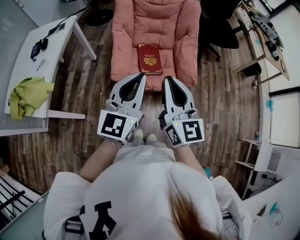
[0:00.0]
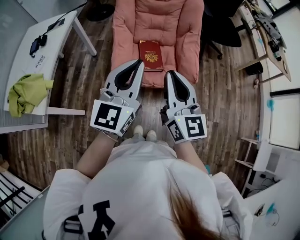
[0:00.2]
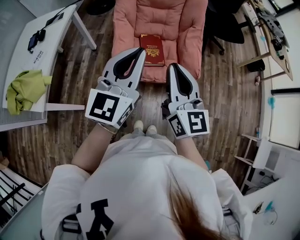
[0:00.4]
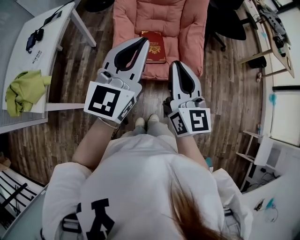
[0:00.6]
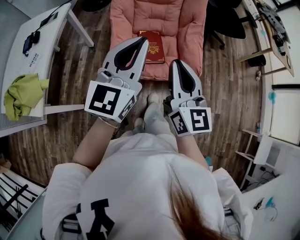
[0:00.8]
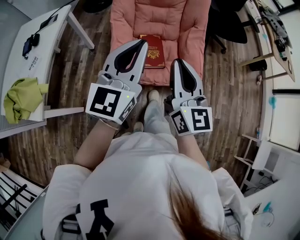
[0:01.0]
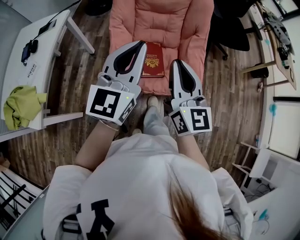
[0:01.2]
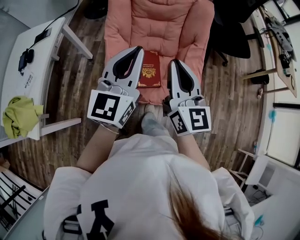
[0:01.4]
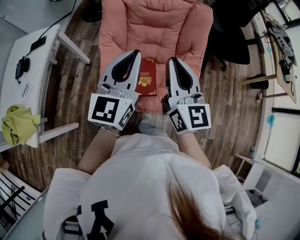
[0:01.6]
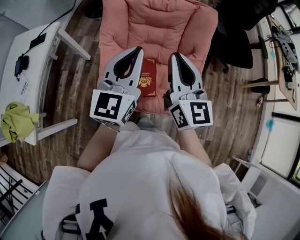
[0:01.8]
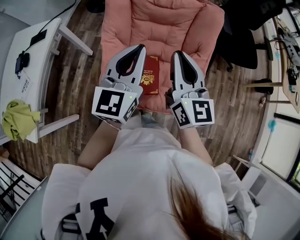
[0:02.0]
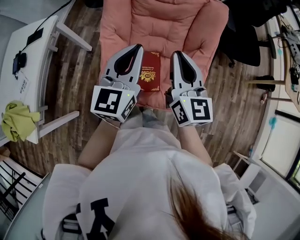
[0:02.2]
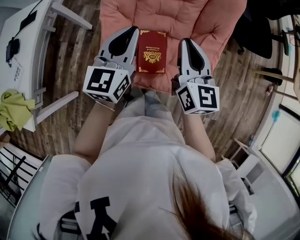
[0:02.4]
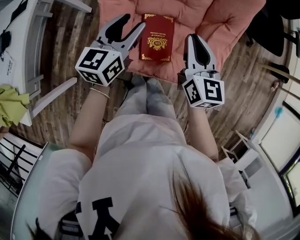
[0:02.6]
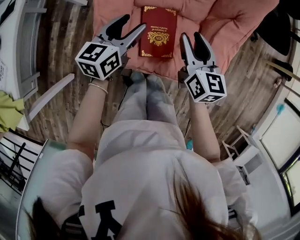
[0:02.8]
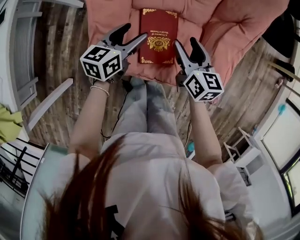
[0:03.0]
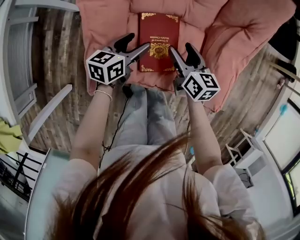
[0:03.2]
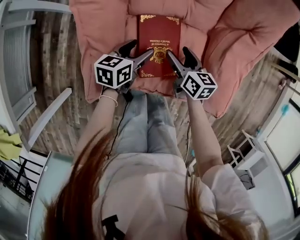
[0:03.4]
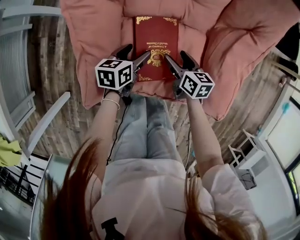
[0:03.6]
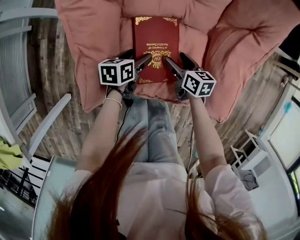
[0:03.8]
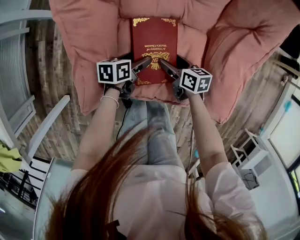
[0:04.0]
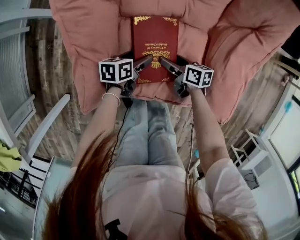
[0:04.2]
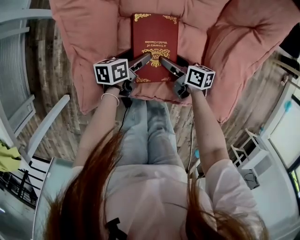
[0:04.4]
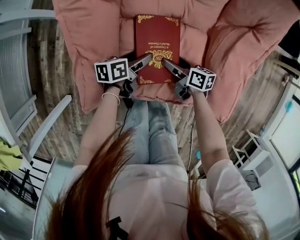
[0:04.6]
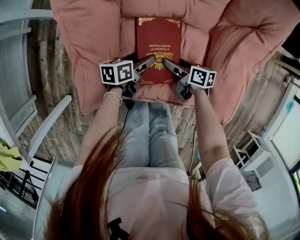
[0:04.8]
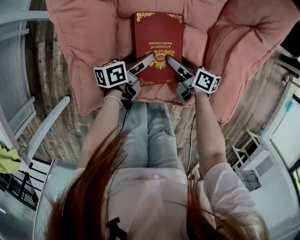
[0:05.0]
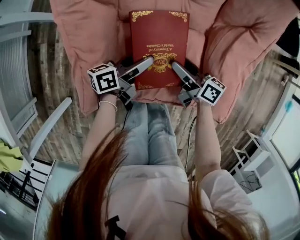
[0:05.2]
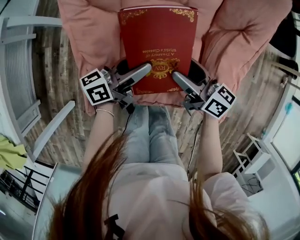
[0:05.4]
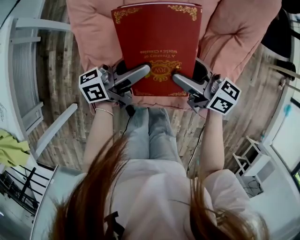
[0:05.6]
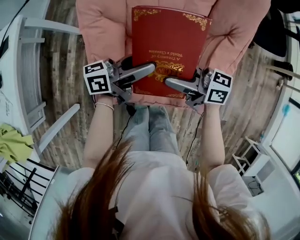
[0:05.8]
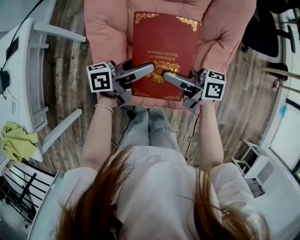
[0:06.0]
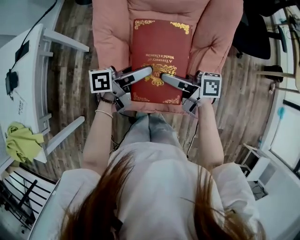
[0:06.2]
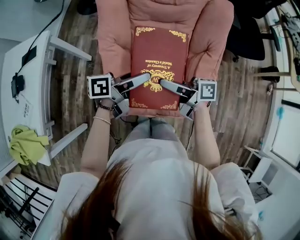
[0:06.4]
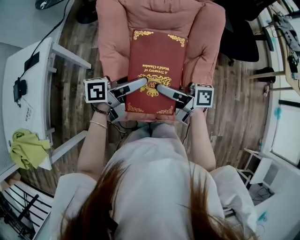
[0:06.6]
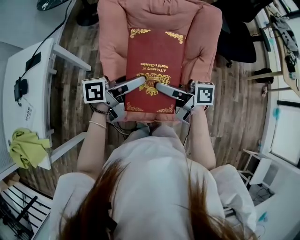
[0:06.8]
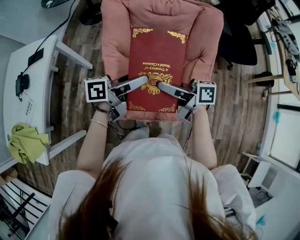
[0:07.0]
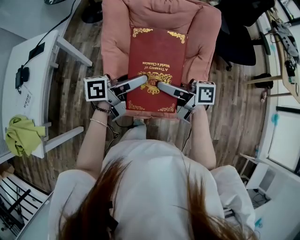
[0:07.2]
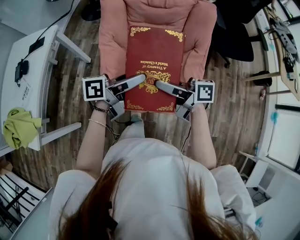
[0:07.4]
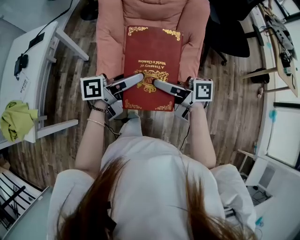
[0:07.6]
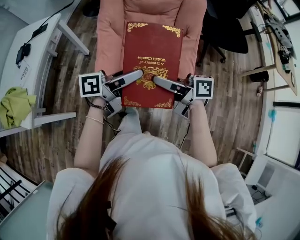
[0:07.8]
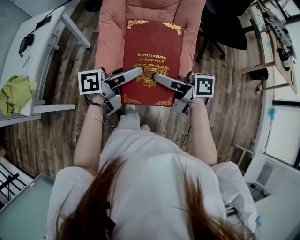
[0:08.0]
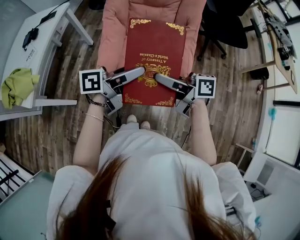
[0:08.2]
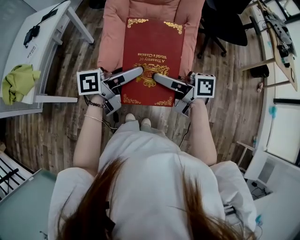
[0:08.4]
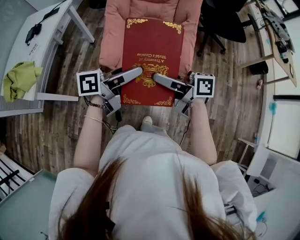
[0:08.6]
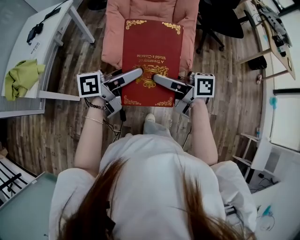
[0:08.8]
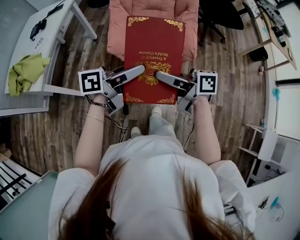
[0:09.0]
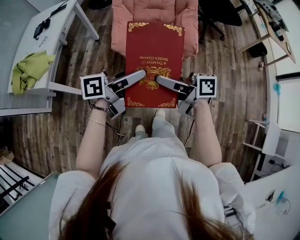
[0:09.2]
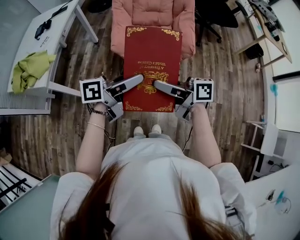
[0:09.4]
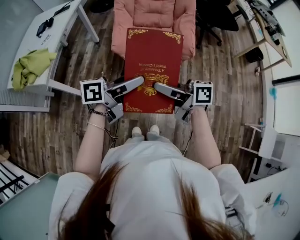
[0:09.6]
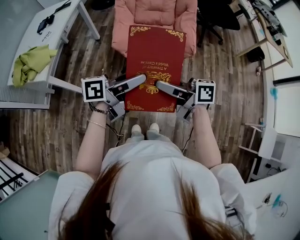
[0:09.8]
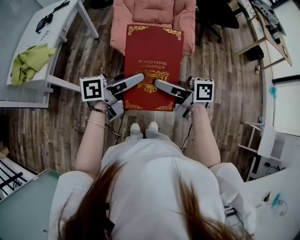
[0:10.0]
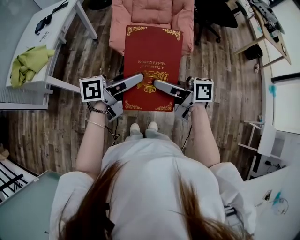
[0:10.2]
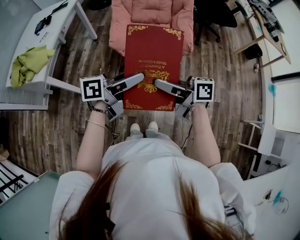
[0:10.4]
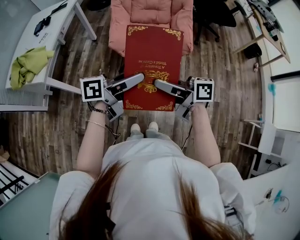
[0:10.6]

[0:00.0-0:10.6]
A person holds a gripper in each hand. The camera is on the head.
0:00.0 to 0:01.6: The two grippers go approximately 30 cm forward.
0:01.6 to 0:03.0: Both grippers move downward, roughly 40 cm. The right gripper tilts its fingers approximately 30 degrees downward, and opens up. The left gripper rotates about 40 degrees, and opens.
0:03.0 to 0:04.6: The two grippers go some 20 cm downward. The right gripper swivels some 40 degrees, while the left gripper changes its angle by about 30 degrees.
0:04.6 to 0:06.0: Both grippers travel together upward, some 30 cm. The right gripper turns by roughly 30 degrees. Meanwhile the left gripper tips its fingers upward by some 30 degrees.
0:06.0 to 0:07.6: The right gripper moves upward, roughly 15 cm, while the left gripper changes place by about 20 cm.
0:07.6 to 0:09.0: The left gripper shifts by about 30 cm, while the right gripper changes place by some 30 cm.
0:09.0 to 0:10.6: The right gripper ends up some 10 cm from where it was. Meanwhile the left gripper shifts by approximately 10 cm.

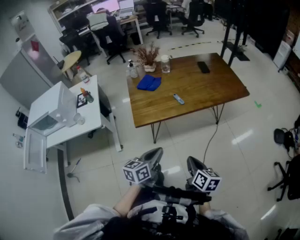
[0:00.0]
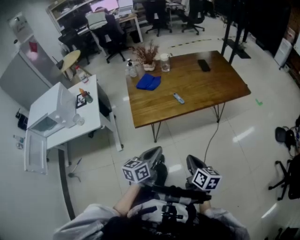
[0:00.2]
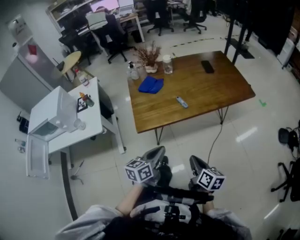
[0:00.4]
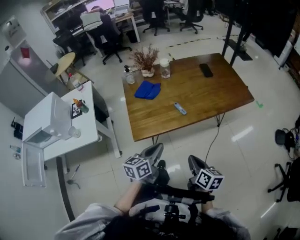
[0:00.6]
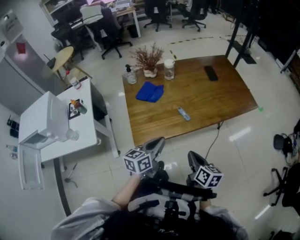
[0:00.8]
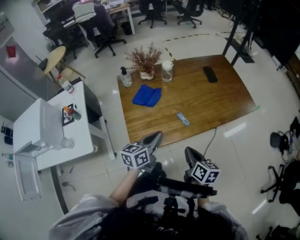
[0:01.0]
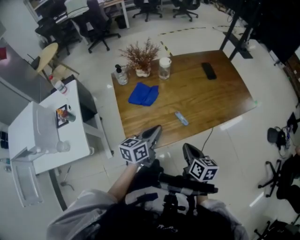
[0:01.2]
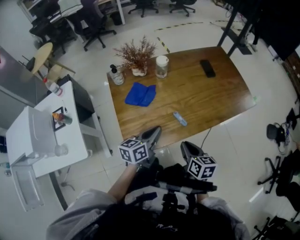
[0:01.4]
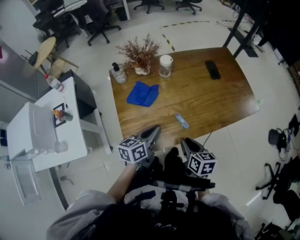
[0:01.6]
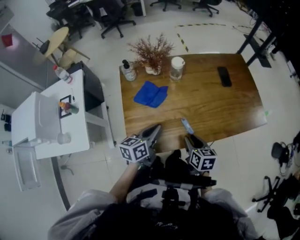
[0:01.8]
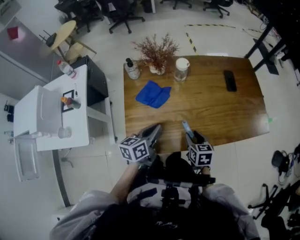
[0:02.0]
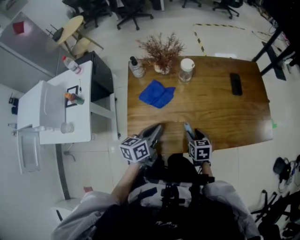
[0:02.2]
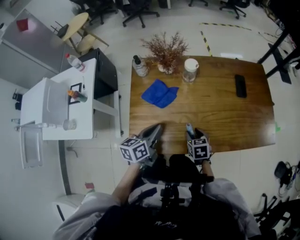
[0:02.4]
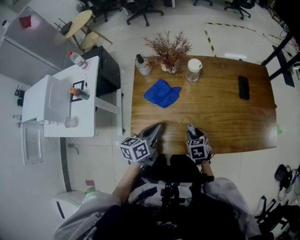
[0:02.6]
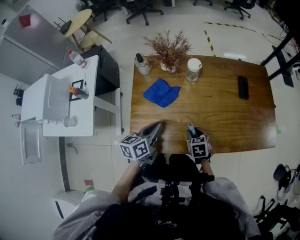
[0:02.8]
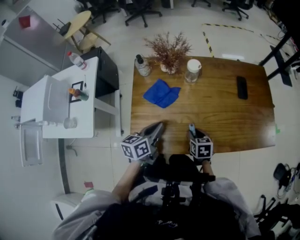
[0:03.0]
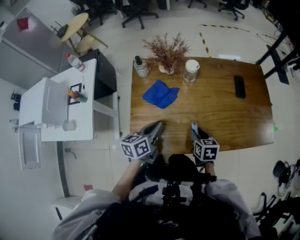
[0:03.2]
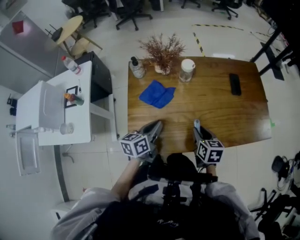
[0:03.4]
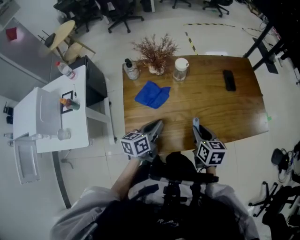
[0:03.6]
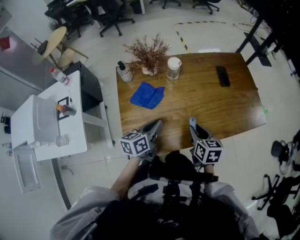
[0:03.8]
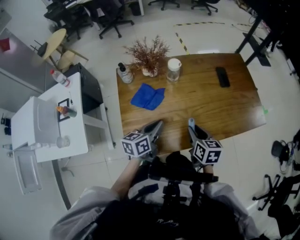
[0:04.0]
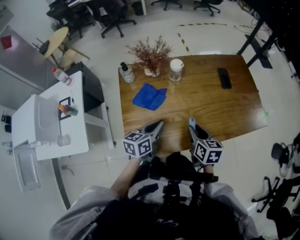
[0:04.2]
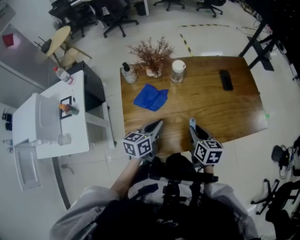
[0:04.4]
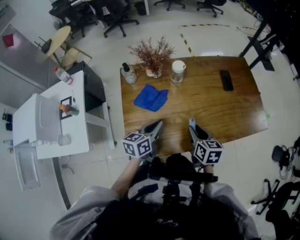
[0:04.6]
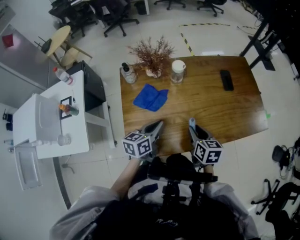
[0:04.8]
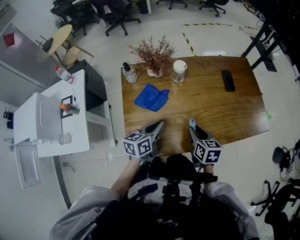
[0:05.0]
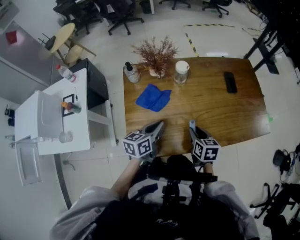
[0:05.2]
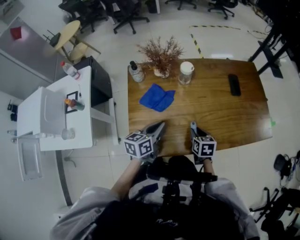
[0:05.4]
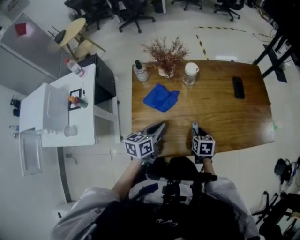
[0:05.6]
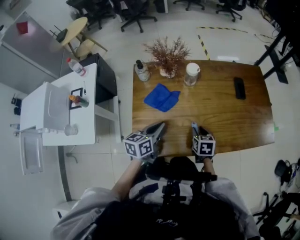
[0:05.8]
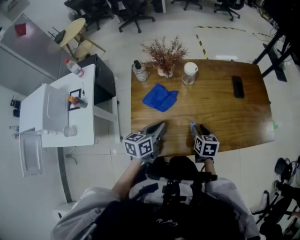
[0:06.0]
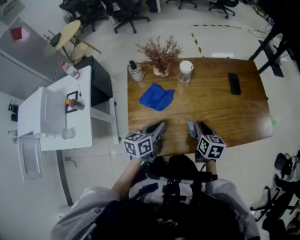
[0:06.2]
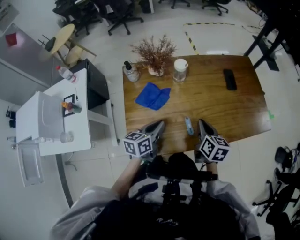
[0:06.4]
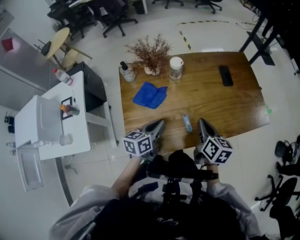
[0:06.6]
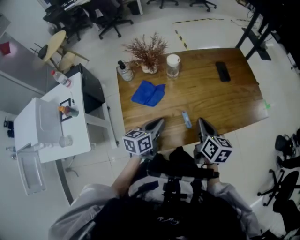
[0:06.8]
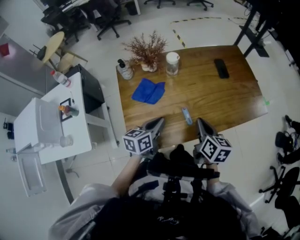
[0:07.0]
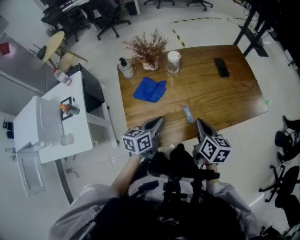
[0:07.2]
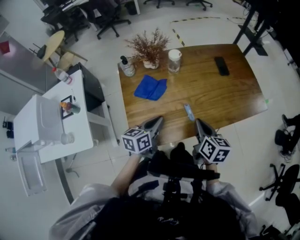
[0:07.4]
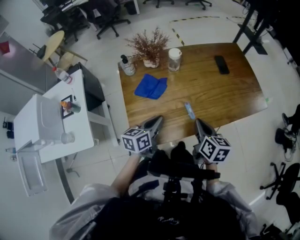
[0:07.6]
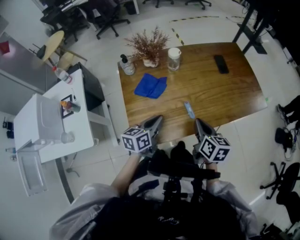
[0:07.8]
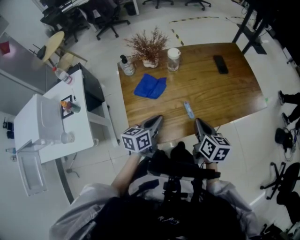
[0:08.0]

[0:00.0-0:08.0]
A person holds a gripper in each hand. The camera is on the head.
0:00.0 to 0:01.6: Both grippers move forward, about 35 cm.
0:01.6 to 0:03.2: The right gripper moves forward and downward, roughly 15 cm, and turns by roughly 20 degrees, while the left gripper moves approximately 5 cm.
0:03.2 to 0:04.8: The right gripper is displaced upward by about 5 cm.
0:04.8 to 0:06.4: The right gripper travels downward and back again, about 10 cm each way, and closes up.
0:06.4 to 0:08.0: The right gripper moves backward, about 10 cm. The left gripper goes about 5 cm backward.

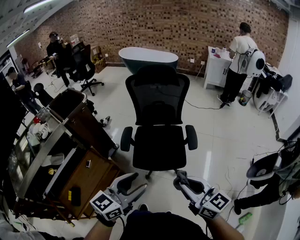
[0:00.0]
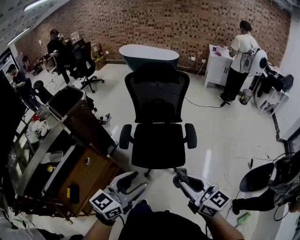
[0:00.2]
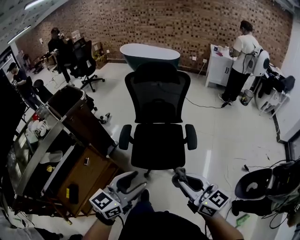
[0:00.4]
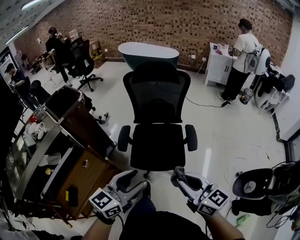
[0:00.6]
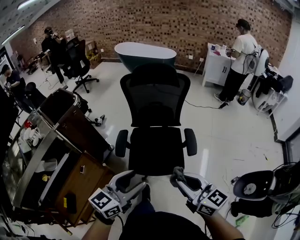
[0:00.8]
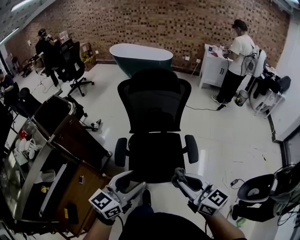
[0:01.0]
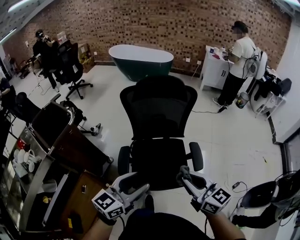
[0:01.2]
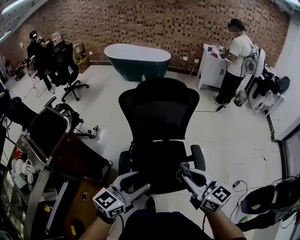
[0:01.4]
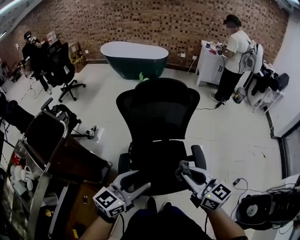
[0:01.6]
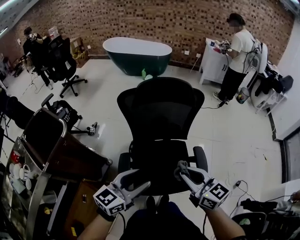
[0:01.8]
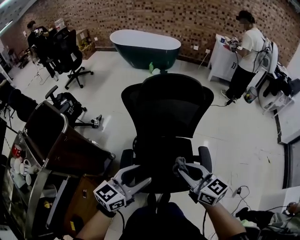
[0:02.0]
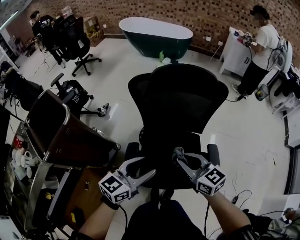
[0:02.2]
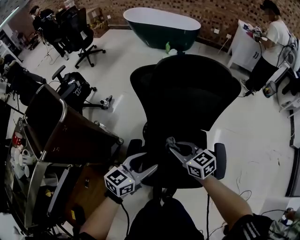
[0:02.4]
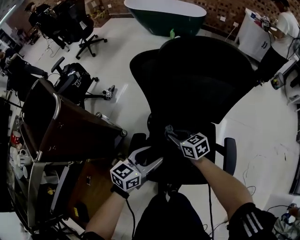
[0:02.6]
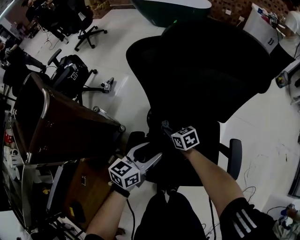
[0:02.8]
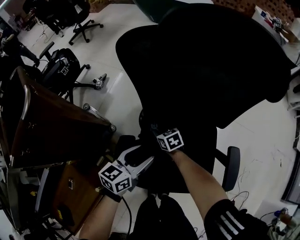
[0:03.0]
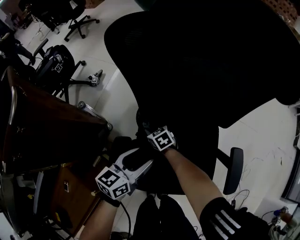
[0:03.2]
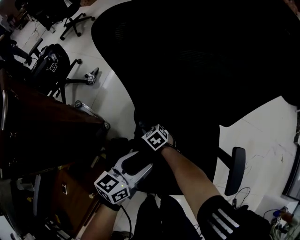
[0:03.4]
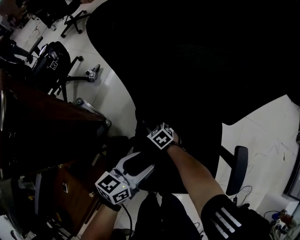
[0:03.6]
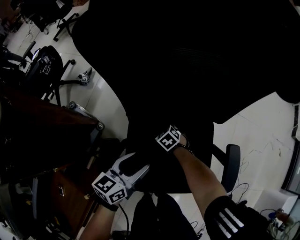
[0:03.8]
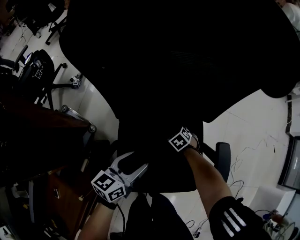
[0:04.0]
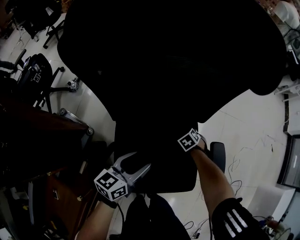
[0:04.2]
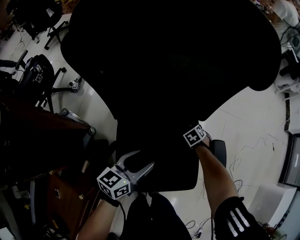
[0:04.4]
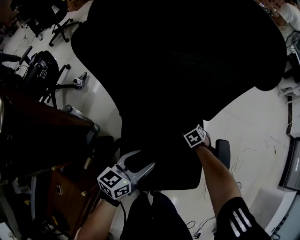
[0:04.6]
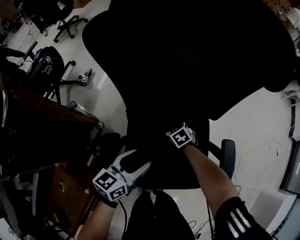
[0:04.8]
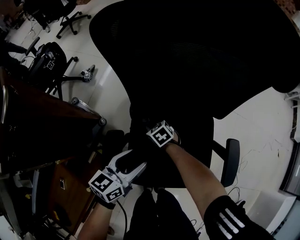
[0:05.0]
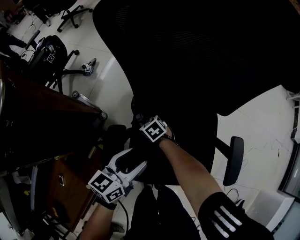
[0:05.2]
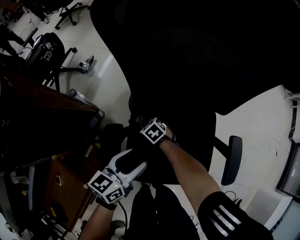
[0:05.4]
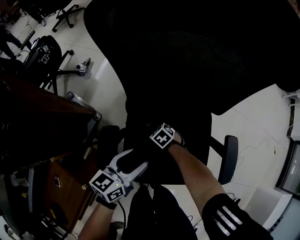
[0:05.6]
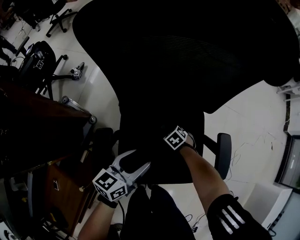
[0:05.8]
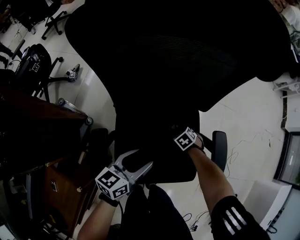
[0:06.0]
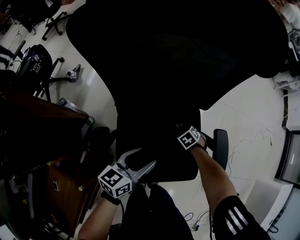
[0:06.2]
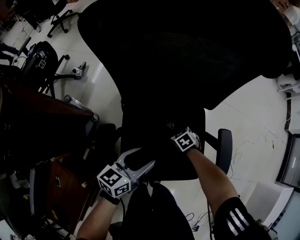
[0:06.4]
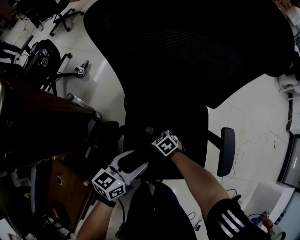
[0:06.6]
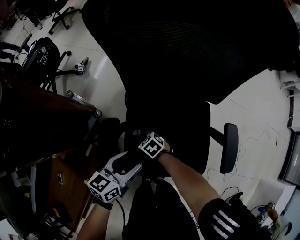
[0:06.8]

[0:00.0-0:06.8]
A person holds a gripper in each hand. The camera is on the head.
0:00.0 to 0:01.4: The grippers both shift forward by roughly 30 cm.
0:01.4 to 0:02.8: The two grippers go about 50 cm downward and forward. The right gripper tips its fingers downward by roughly 30 degrees. Meanwhile the left gripper rotates some 30 degrees.
0:02.8 to 0:04.0: The left gripper moves downward and to the right, about 10 cm, while the right gripper shifts roughly 25 cm downward and to the right, and changes its angle by roughly 30 degrees.
0:04.0 to 0:05.4: The right gripper ends up some 25 cm from where it was, while the left gripper shifts by about 5 cm.
